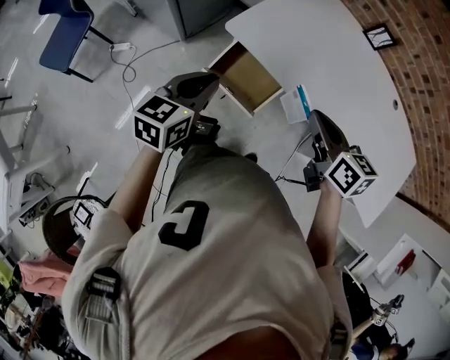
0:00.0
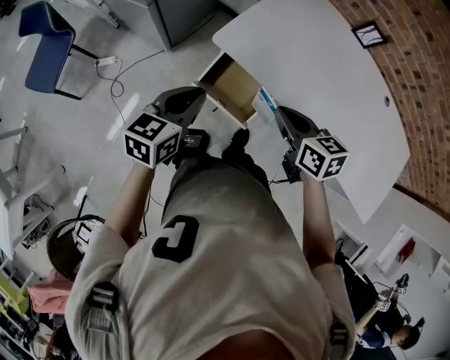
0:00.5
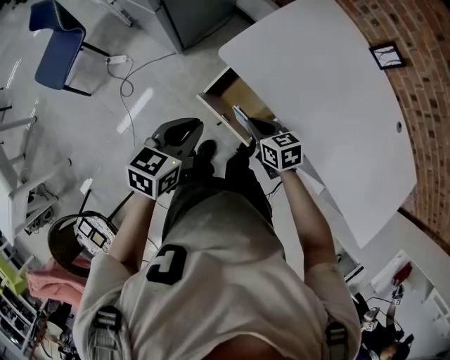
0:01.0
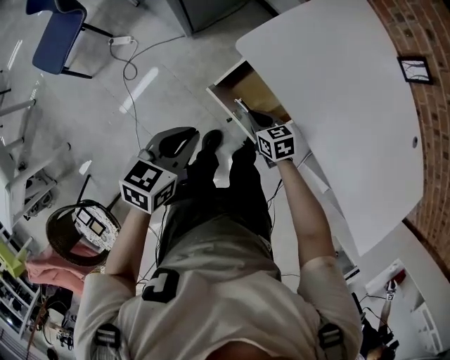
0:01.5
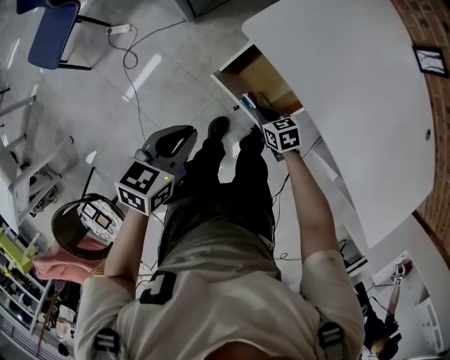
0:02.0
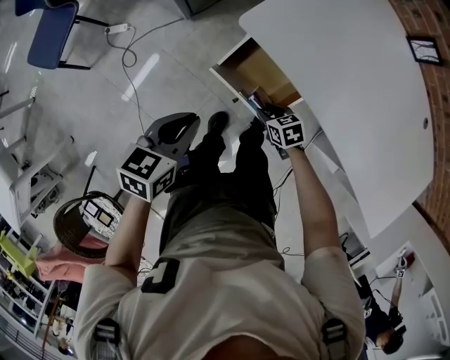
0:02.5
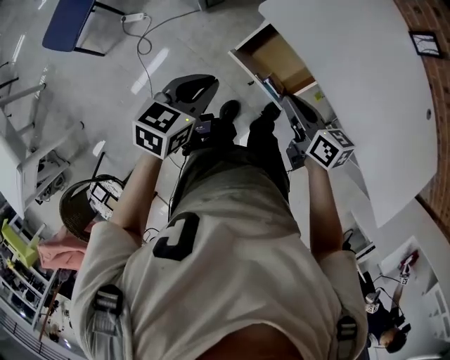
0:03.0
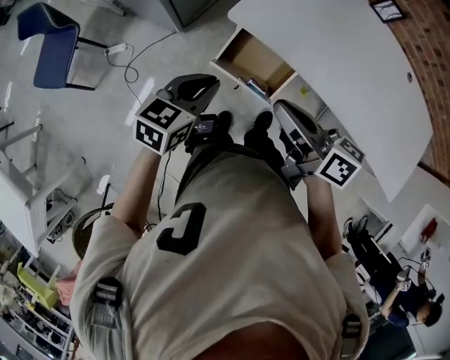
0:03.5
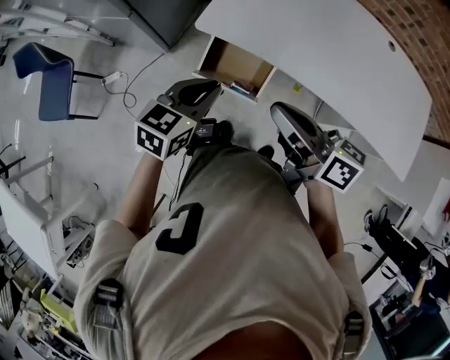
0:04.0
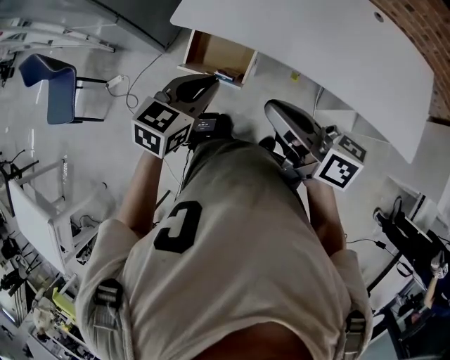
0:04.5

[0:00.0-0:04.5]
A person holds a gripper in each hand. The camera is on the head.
0:00.0 to 0:02.0: The left gripper goes approximately 15 cm downward and to the left, and turns by some 20 degrees. The right gripper travels downward by some 40 cm, and changes its angle by roughly 40 degrees.
0:02.0 to 0:04.5: The right gripper moves upward and backward, roughly 40 cm, tips its fingers upward by about 50 degrees, and opens, then closes again. The left gripper travels to the right, upward and backward by approximately 15 cm, and swivels some 40 degrees.

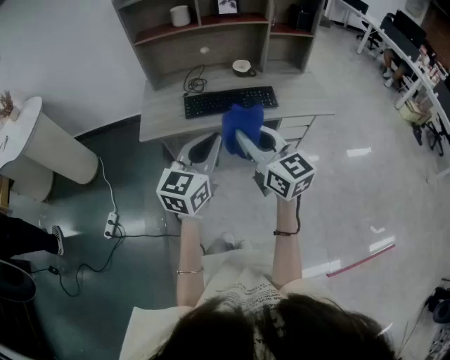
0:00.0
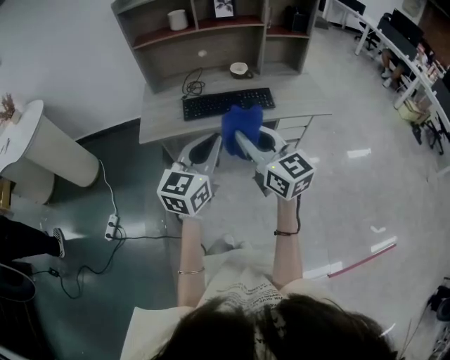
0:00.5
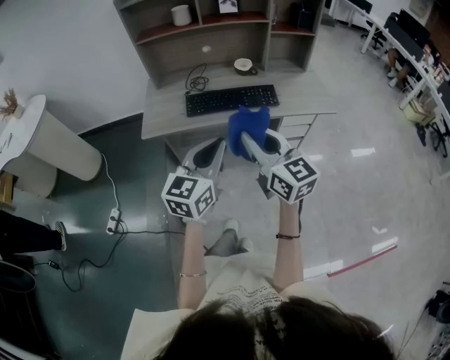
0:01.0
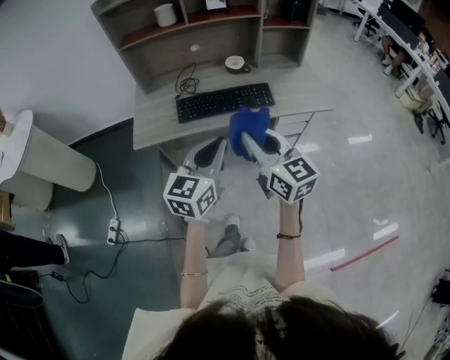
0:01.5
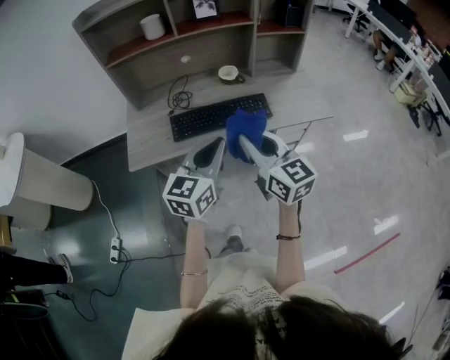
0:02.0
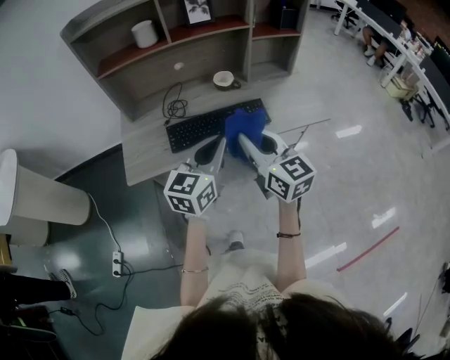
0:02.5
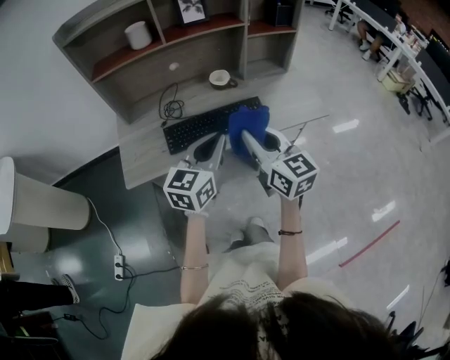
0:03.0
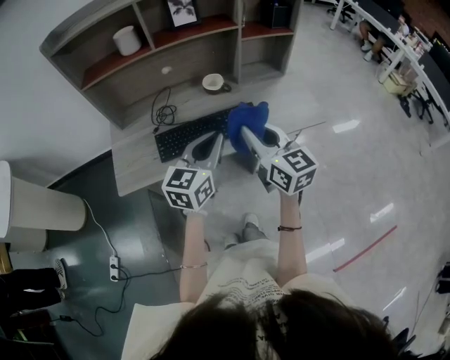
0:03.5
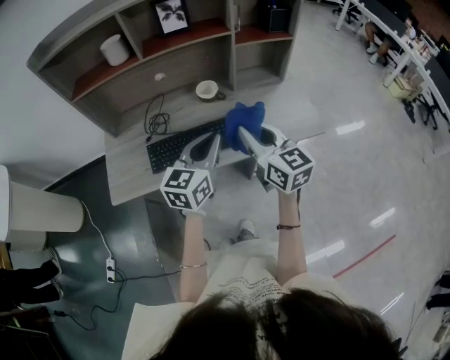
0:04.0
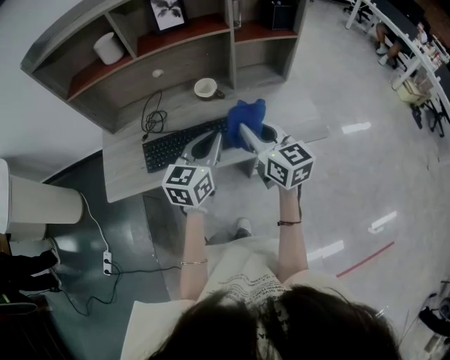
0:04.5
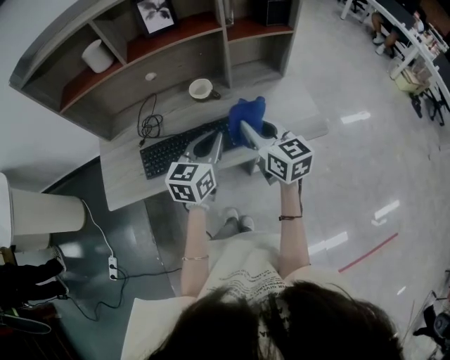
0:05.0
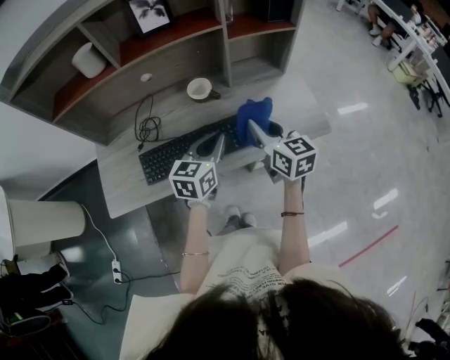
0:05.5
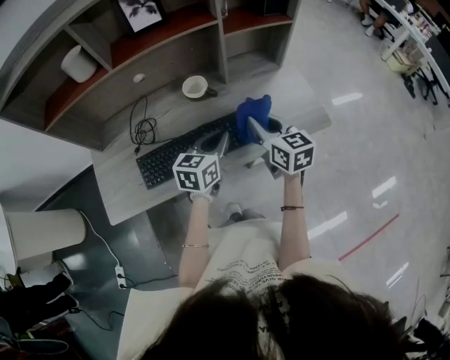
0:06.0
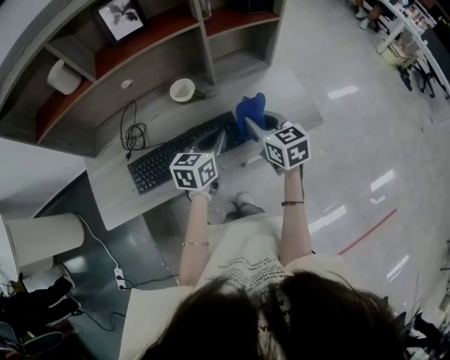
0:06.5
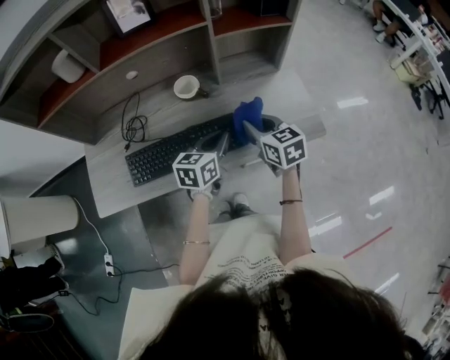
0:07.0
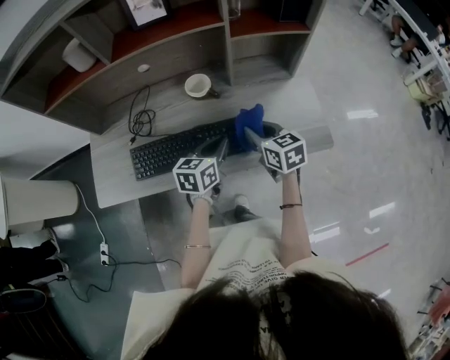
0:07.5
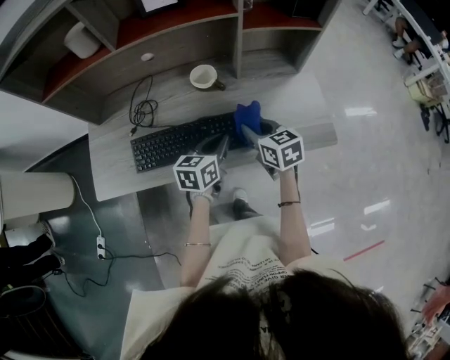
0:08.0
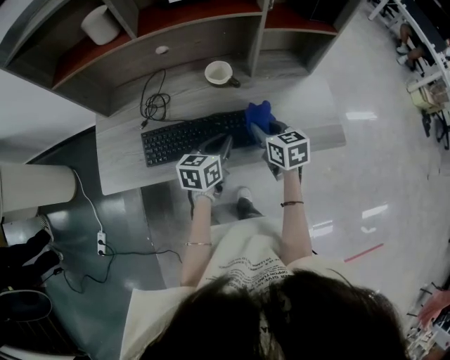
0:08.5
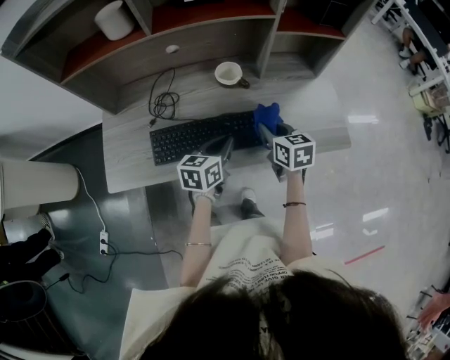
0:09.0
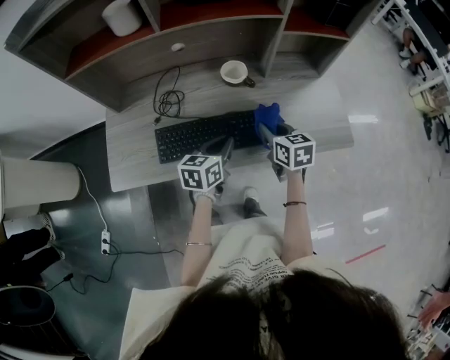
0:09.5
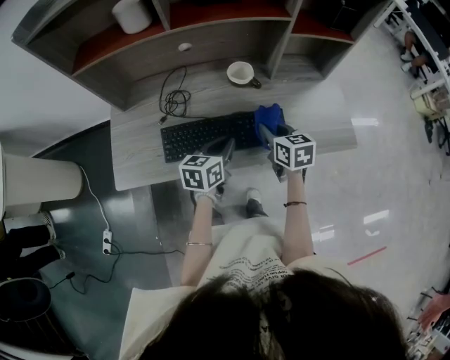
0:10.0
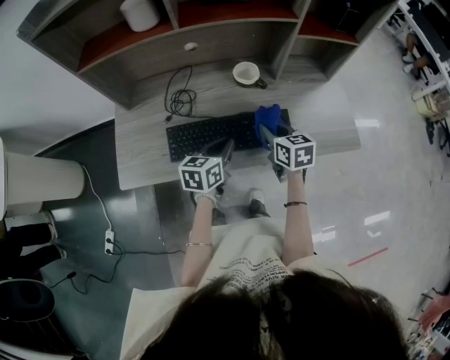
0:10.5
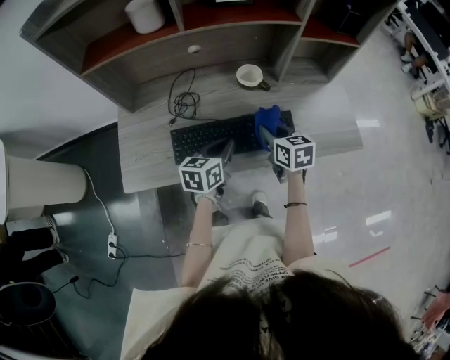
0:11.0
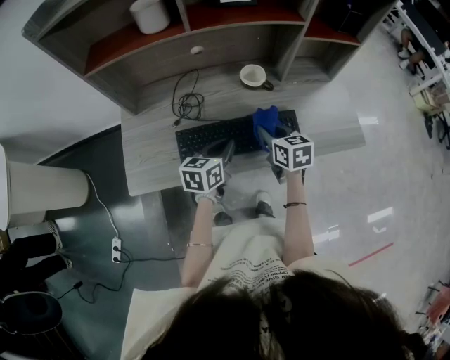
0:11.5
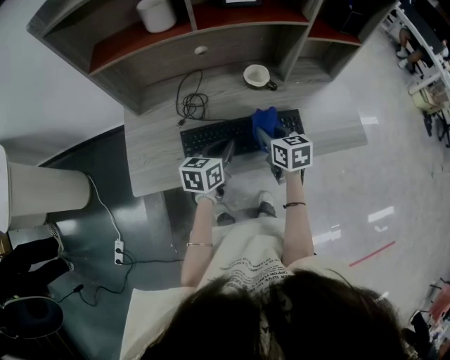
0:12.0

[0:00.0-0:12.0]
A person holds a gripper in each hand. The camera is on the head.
0:00.0 to 0:02.0: Both grippers move forward, about 10 cm.
0:02.0 to 0:04.0: The grippers both shift forward and to the right by approximately 20 cm.
0:04.0 to 0:06.0: The right gripper goes roughly 15 cm forward, downward and to the right, while the left gripper is displaced downward and forward by about 15 cm.
0:06.0 to 0:08.0: The two grippers go about 5 cm downward. The right gripper rotates roughly 20 degrees.
0:08.0 to 0:10.0: The left gripper moves to the left, some 10 cm. The right gripper is displaced to the left by about 5 cm.
0:10.0 to 0:12.0: The grippers both shift to the left by approximately 10 cm.

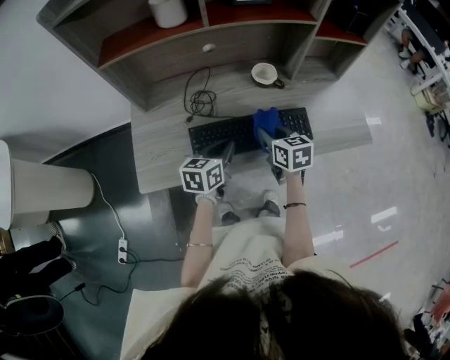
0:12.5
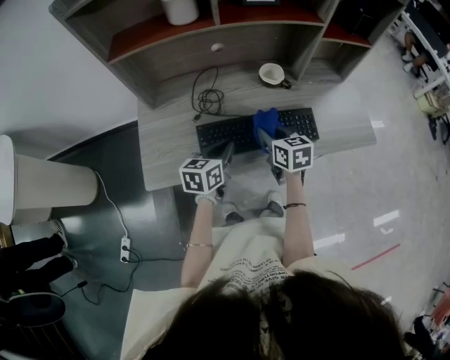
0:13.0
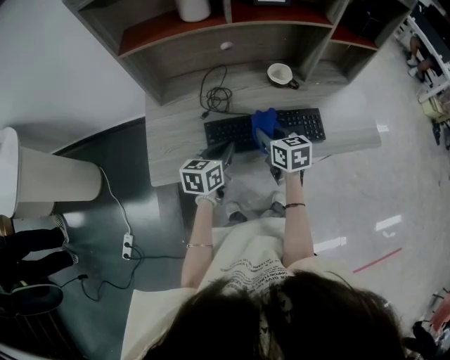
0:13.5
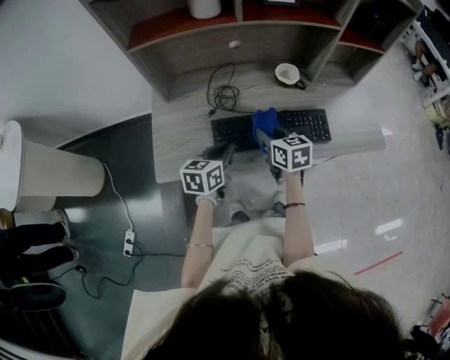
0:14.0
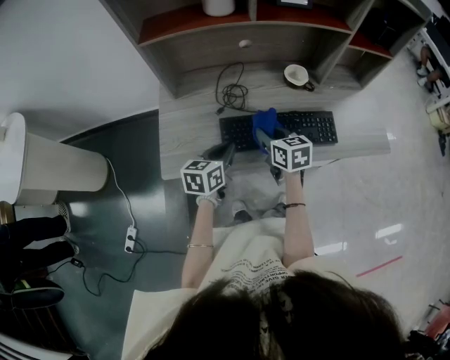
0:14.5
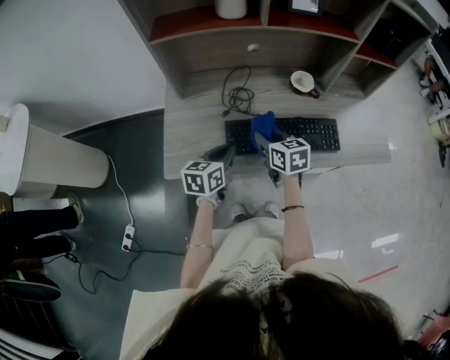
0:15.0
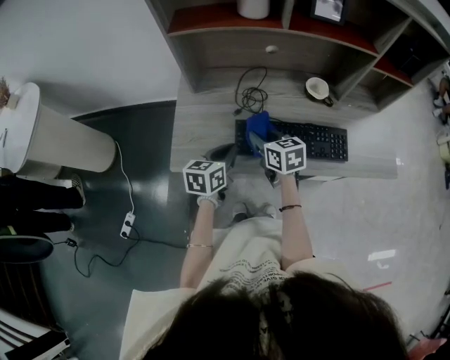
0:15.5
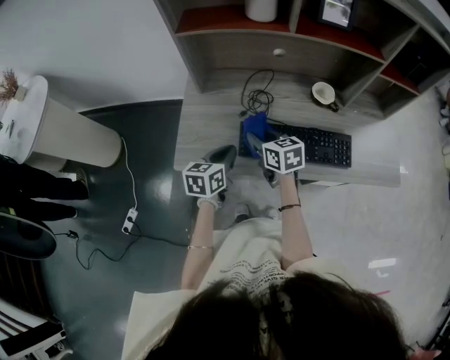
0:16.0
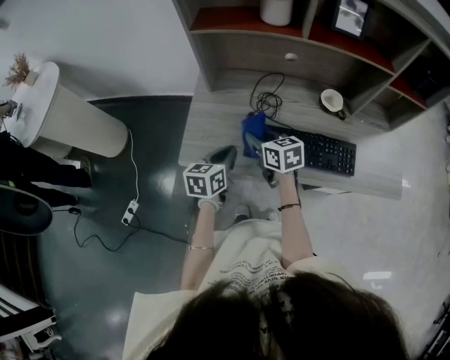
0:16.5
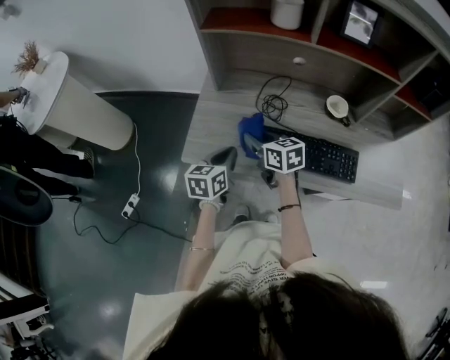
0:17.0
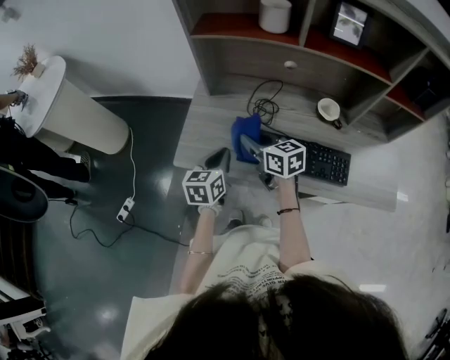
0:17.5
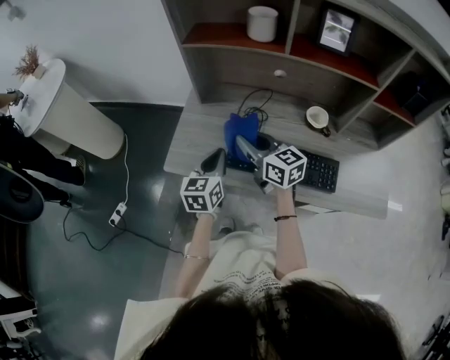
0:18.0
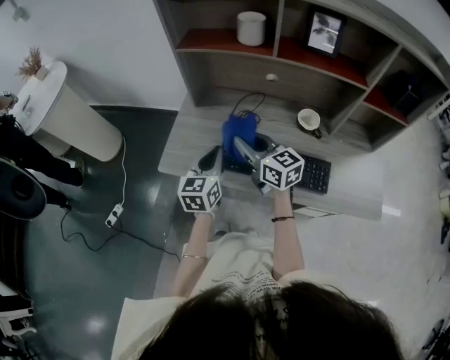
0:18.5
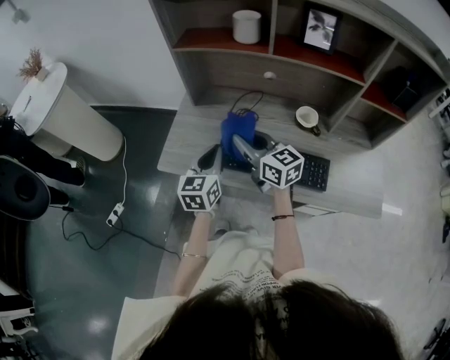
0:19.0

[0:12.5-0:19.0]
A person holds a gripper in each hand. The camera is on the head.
0:12.5 to 0:14.5: Both grippers move to the left, roughly 10 cm.
0:14.5 to 0:17.0: The right gripper travels to the left by roughly 15 cm, and changes its angle by about 30 degrees. The left gripper goes roughly 5 cm to the left, and swivels about 20 degrees.
0:17.0 to 0:19.0: Both grippers travel together upward and to the right, some 10 cm. The left gripper turns by some 20 degrees. The right gripper rotates about 20 degrees.

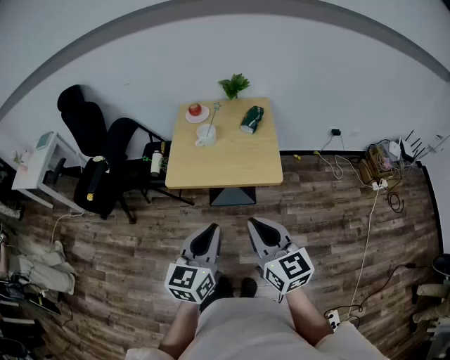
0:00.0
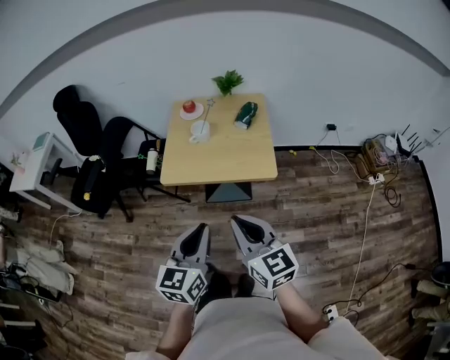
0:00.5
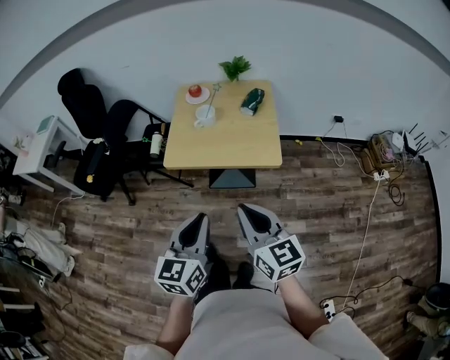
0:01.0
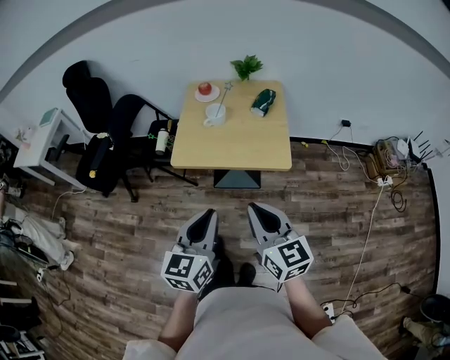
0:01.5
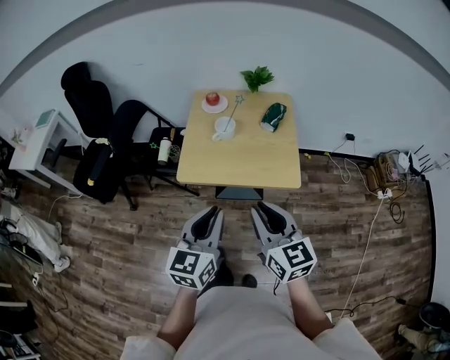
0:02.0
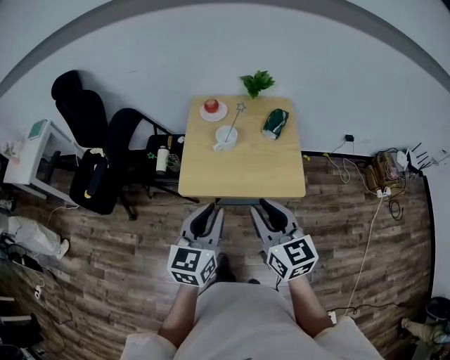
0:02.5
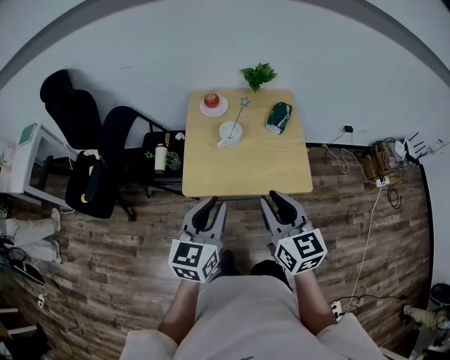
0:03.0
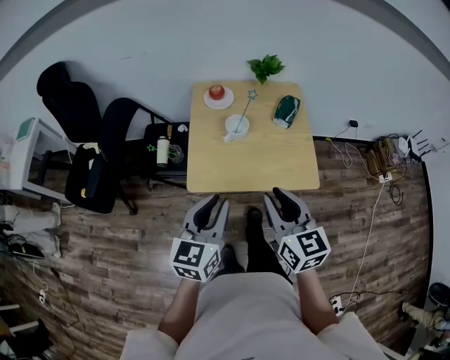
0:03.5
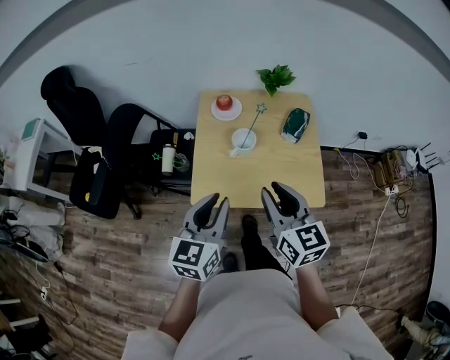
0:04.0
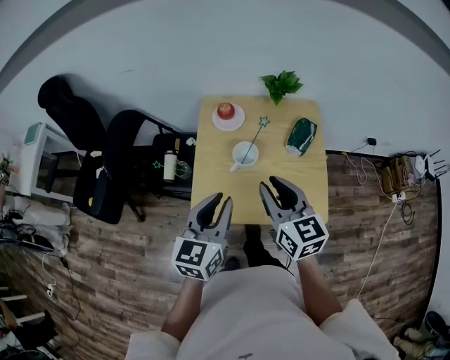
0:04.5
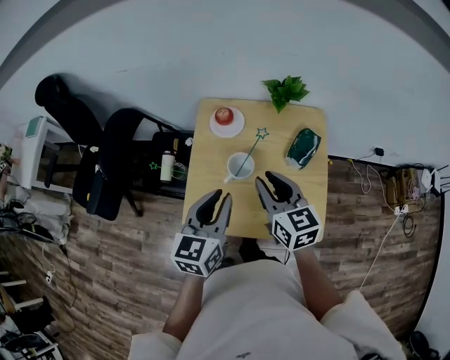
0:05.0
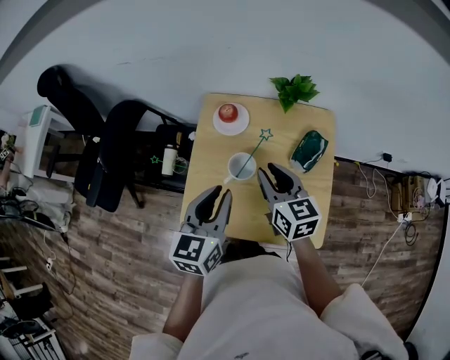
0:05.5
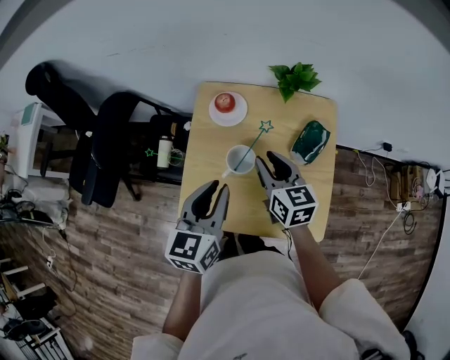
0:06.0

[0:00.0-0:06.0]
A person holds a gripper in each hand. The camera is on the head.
0:00.0 to 0:02.0: The grippers both shift forward and to the left by approximately 10 cm.
0:02.0 to 0:04.0: The left gripper travels forward and to the left by approximately 25 cm. Meanwhile the right gripper moves forward, some 20 cm.
0:04.0 to 0:06.0: The left gripper shifts about 20 cm forward. Meanwhile the right gripper is displaced forward and downward by approximately 30 cm.
